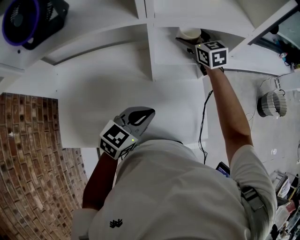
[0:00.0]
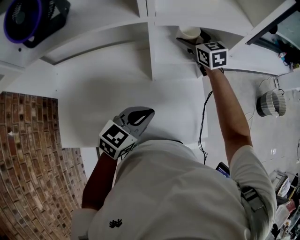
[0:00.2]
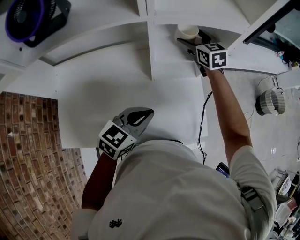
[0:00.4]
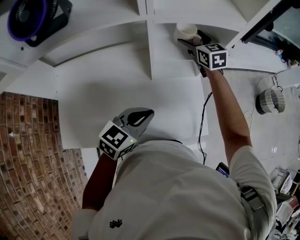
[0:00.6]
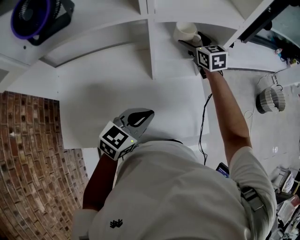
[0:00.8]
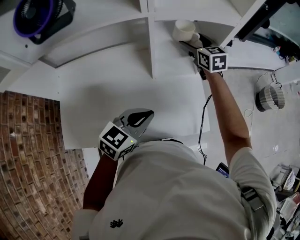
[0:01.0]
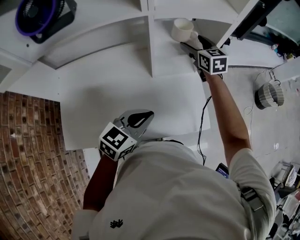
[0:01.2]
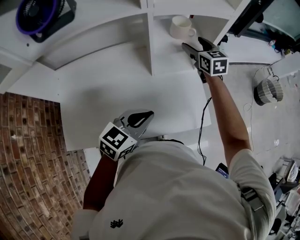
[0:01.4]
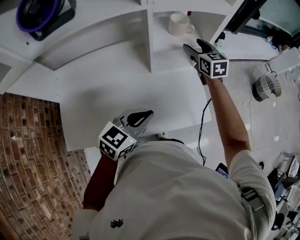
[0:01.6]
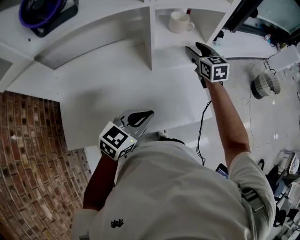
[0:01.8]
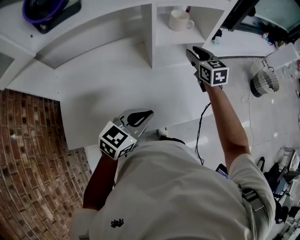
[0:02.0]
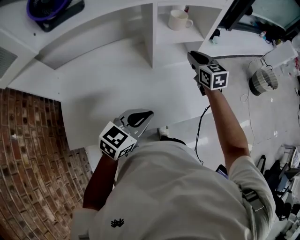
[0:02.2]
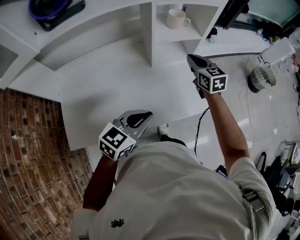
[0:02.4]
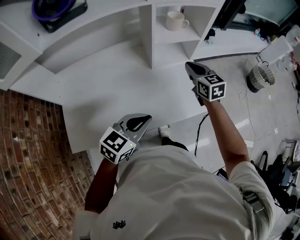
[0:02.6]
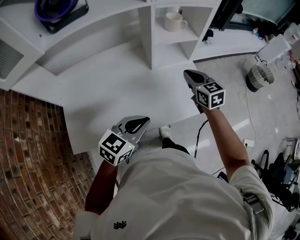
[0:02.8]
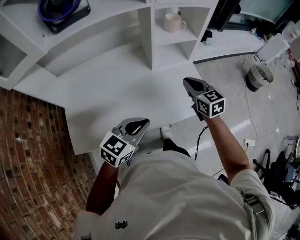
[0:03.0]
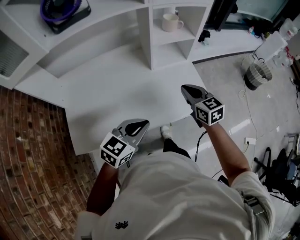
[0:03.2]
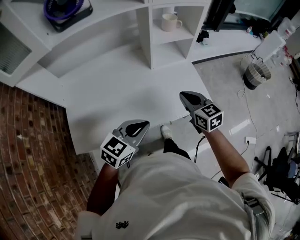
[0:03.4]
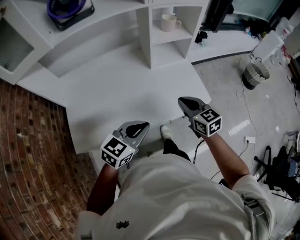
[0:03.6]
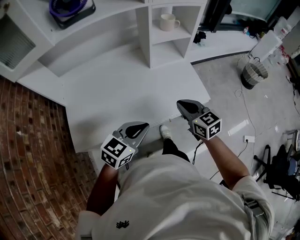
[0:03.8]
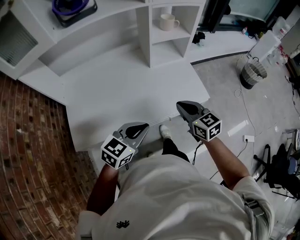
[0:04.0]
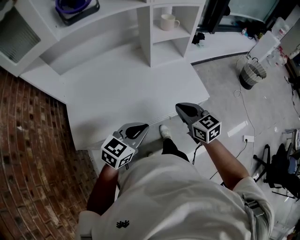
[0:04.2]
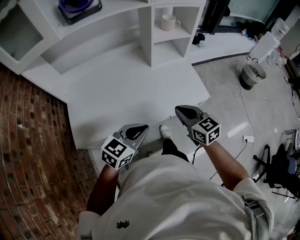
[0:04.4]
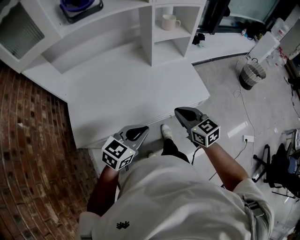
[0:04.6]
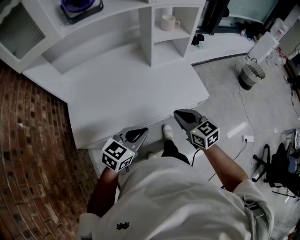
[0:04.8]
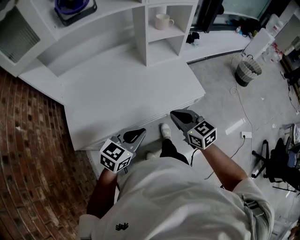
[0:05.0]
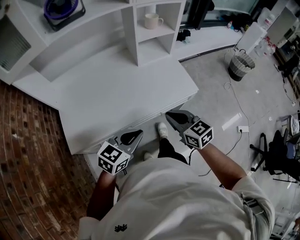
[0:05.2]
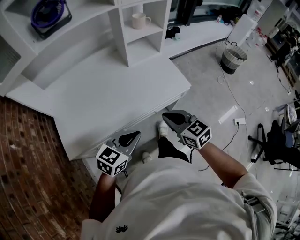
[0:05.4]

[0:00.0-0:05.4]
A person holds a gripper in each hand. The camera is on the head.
0:00.0 to 0:01.4: The right gripper heads backward and to the right, covering about 10 cm. The left gripper shifts approximately 10 cm backward.
0:01.4 to 0:02.8: The left gripper goes about 10 cm backward. Meanwhile the right gripper travels backward by some 25 cm, and closes its fingers.
0:02.8 to 0:04.0: The right gripper travels backward by some 20 cm, while the left gripper is displaced backward by roughly 10 cm.
0:04.0 to 0:05.4: The right gripper moves backward, about 10 cm, while the left gripper heads backward, covering some 5 cm.

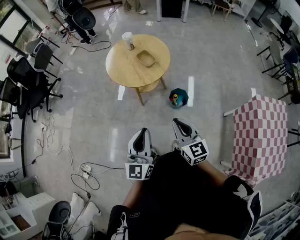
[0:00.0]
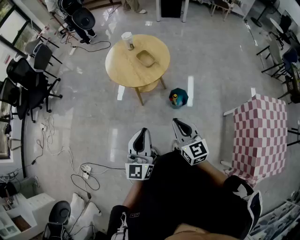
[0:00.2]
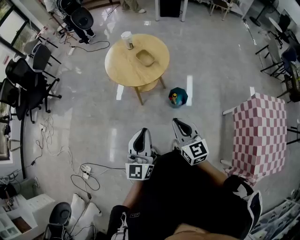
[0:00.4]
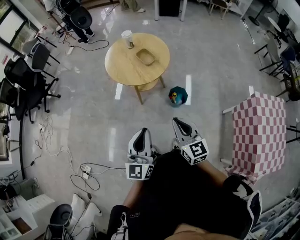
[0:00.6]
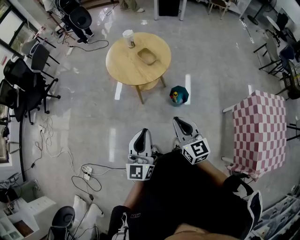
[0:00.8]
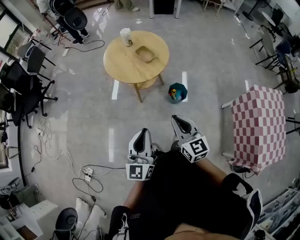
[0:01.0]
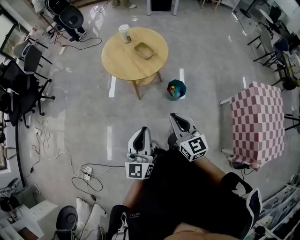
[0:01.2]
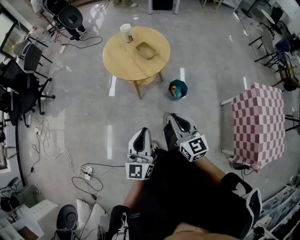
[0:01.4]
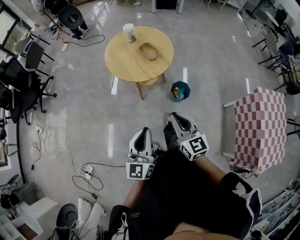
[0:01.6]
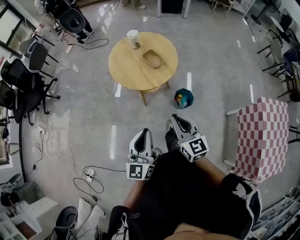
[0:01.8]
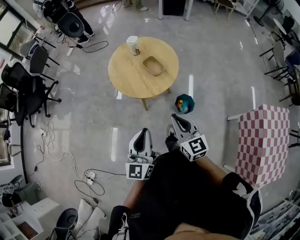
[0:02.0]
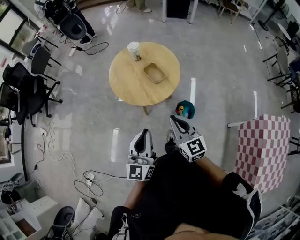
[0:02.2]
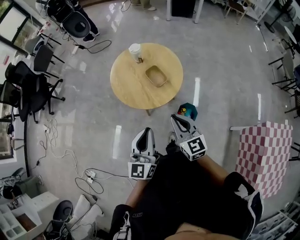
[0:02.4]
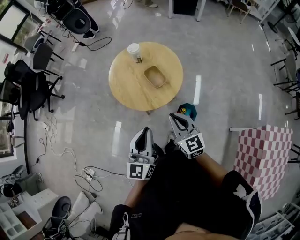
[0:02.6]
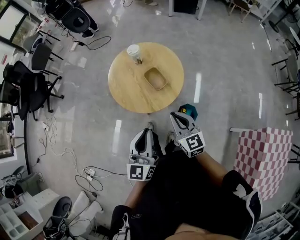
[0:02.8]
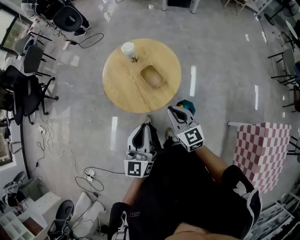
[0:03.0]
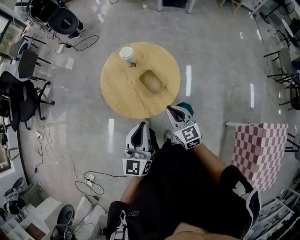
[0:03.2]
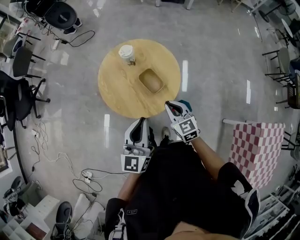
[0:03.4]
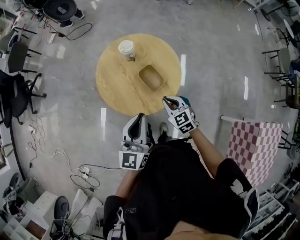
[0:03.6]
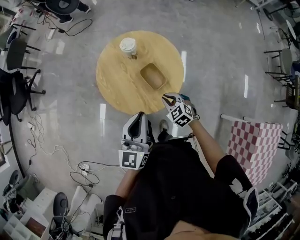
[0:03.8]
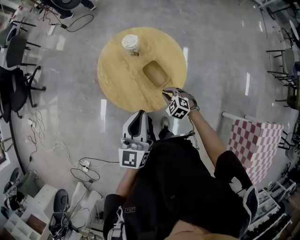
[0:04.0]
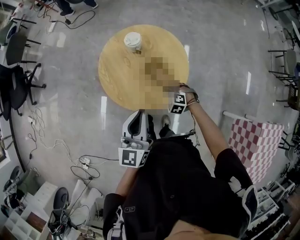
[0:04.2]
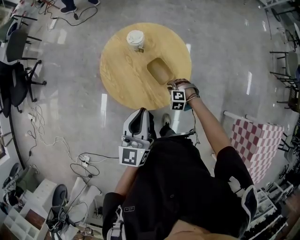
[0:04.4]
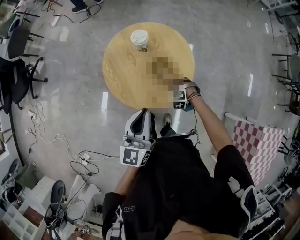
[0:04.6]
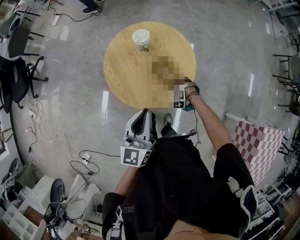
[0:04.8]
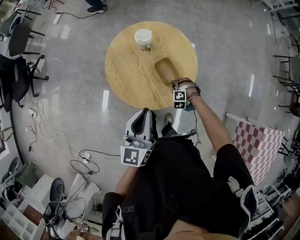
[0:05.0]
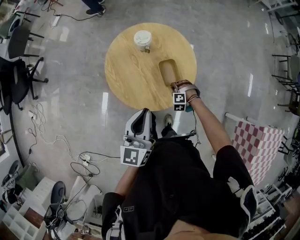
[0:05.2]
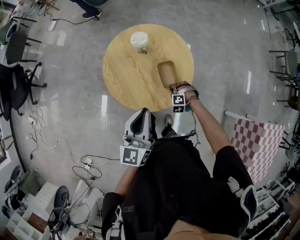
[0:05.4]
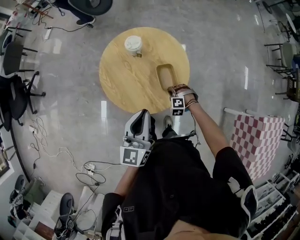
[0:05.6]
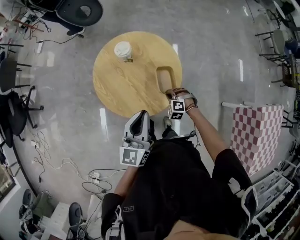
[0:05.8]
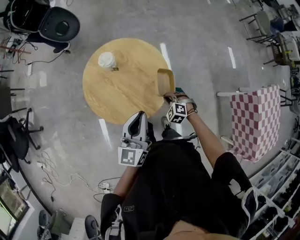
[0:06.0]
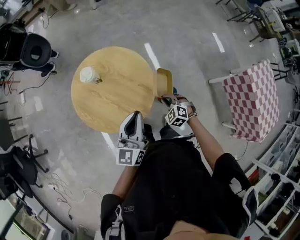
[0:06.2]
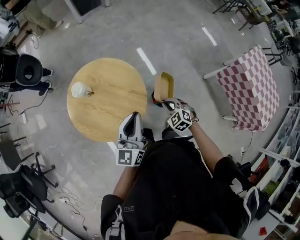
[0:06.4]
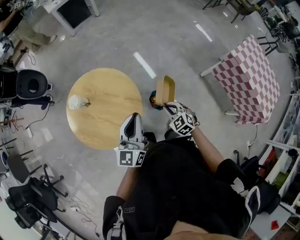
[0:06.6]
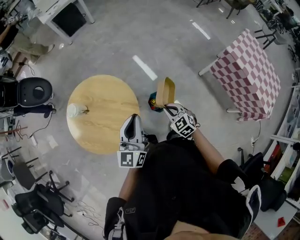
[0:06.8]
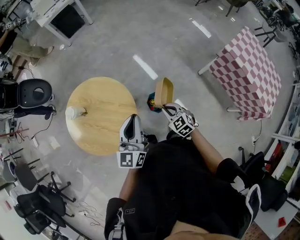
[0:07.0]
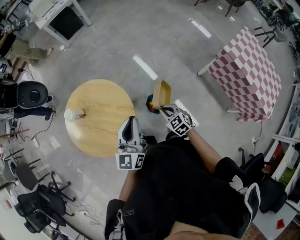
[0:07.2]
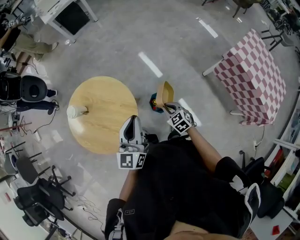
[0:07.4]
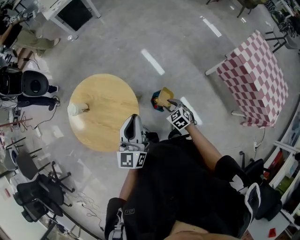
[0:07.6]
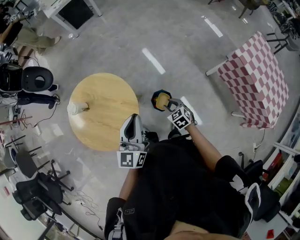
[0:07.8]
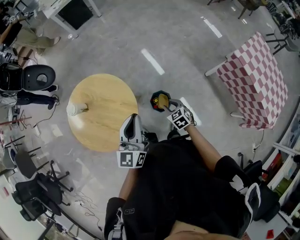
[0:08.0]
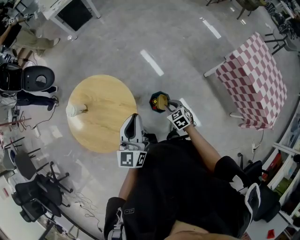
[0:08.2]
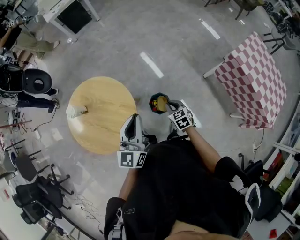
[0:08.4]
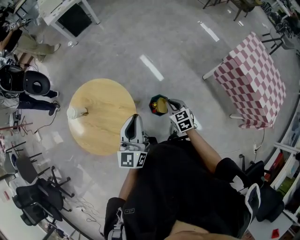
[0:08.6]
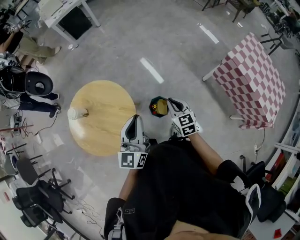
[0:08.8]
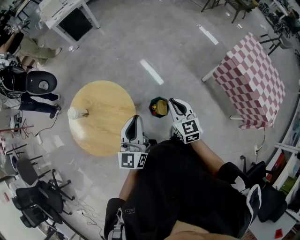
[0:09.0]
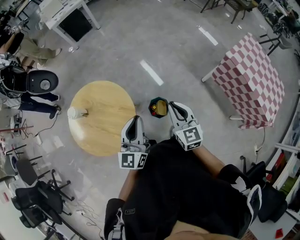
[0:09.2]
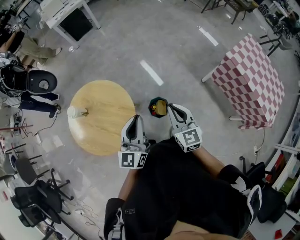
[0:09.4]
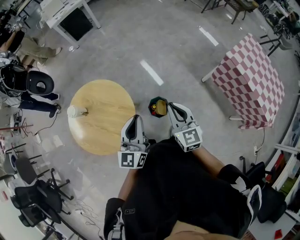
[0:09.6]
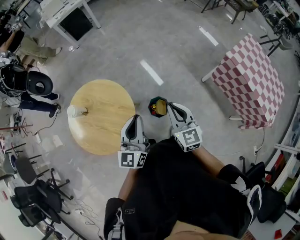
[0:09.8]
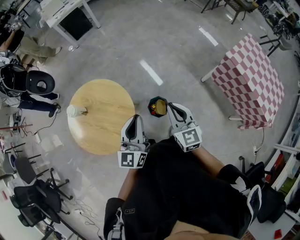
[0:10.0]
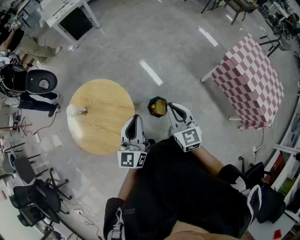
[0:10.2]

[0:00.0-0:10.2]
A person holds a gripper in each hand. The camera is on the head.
0:00.0 to 0:01.4: The two grippers go approximately 10 cm to the left.
0:01.4 to 0:03.0: The two grippers go approximately 35 cm forward.
0:03.0 to 0:04.4: The right gripper is displaced downward and forward by approximately 35 cm, and tilts its fingers about 60 degrees downward; the left gripper moves forward, about 15 cm.
0:04.4 to 0:05.8: There are only small adjustments of the grippers.
0:05.8 to 0:07.2: The right gripper shifts by roughly 30 cm, and rolls clockwise, seen from behind, by about 70 degrees. The left gripper ends up some 25 cm from where it was, and changes its angle by approximately 30 degrees.
0:07.2 to 0:08.8: The right gripper moves upward and to the right, approximately 10 cm, changes its angle by about 20 degrees, and opens, then closes once more.
0:08.8 to 0:10.2: The right gripper heads upward, covering approximately 10 cm.

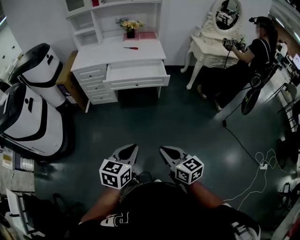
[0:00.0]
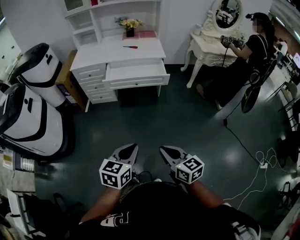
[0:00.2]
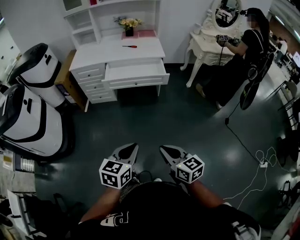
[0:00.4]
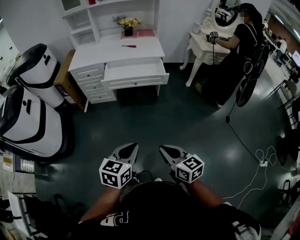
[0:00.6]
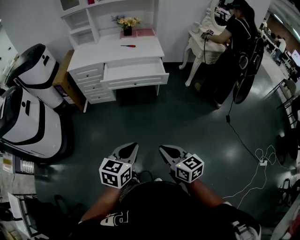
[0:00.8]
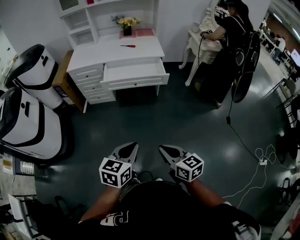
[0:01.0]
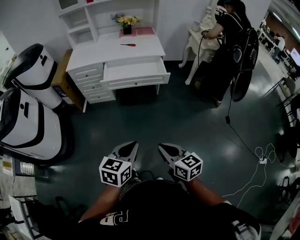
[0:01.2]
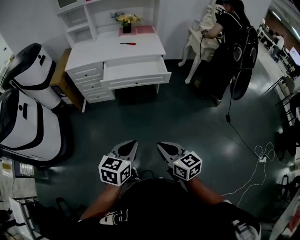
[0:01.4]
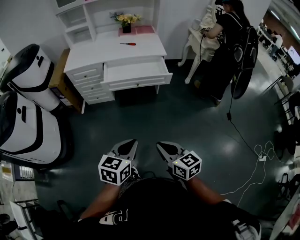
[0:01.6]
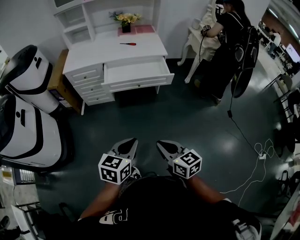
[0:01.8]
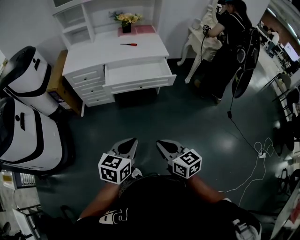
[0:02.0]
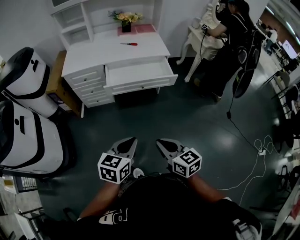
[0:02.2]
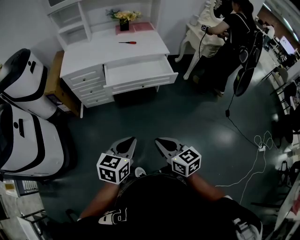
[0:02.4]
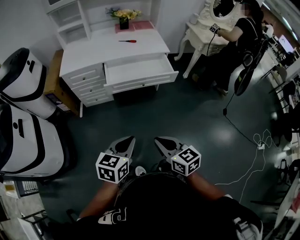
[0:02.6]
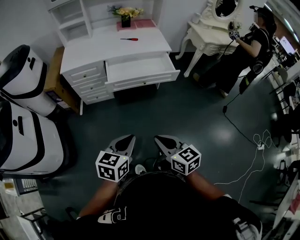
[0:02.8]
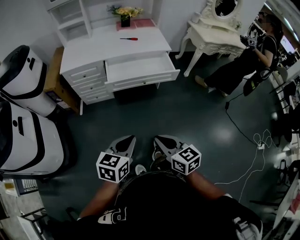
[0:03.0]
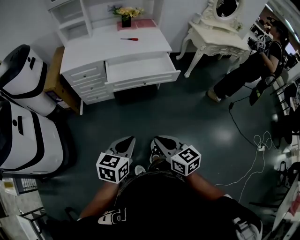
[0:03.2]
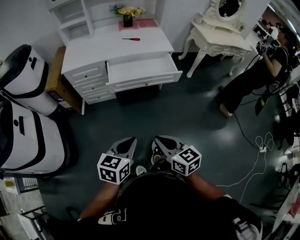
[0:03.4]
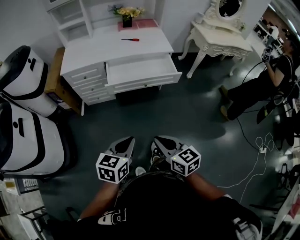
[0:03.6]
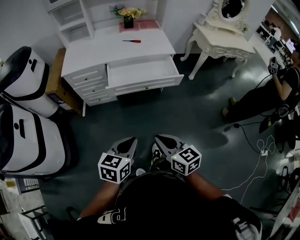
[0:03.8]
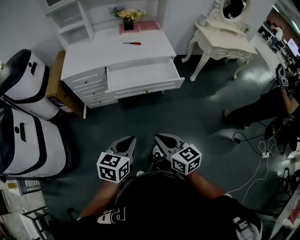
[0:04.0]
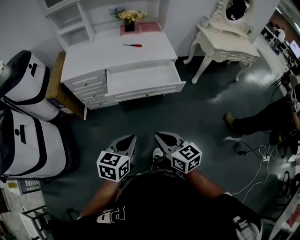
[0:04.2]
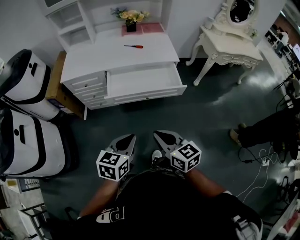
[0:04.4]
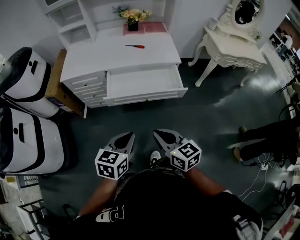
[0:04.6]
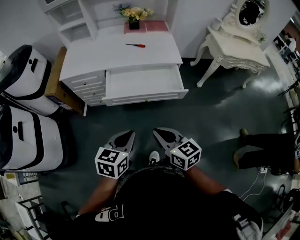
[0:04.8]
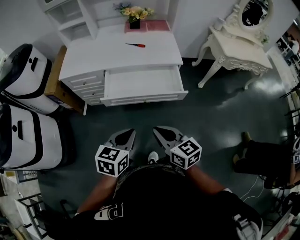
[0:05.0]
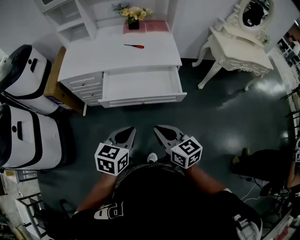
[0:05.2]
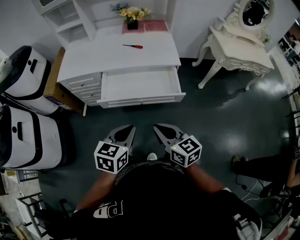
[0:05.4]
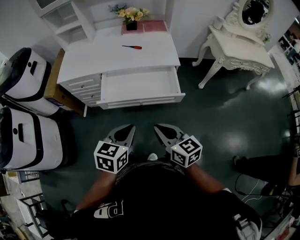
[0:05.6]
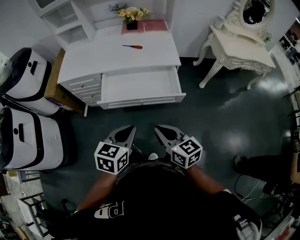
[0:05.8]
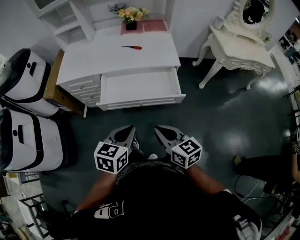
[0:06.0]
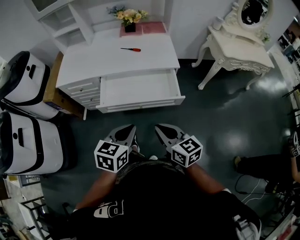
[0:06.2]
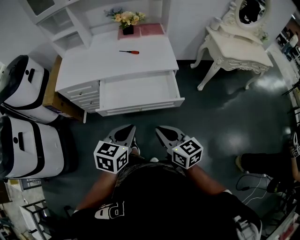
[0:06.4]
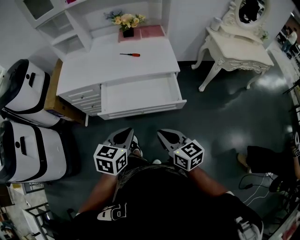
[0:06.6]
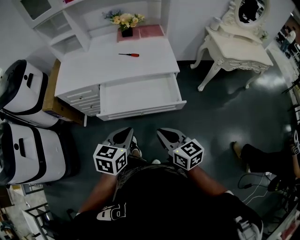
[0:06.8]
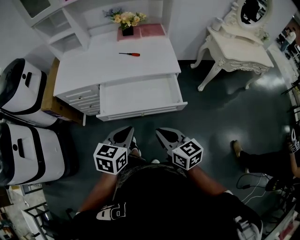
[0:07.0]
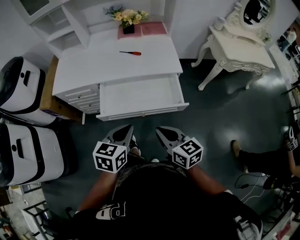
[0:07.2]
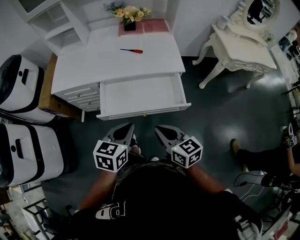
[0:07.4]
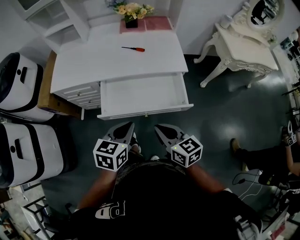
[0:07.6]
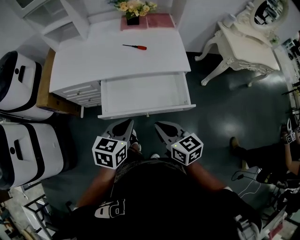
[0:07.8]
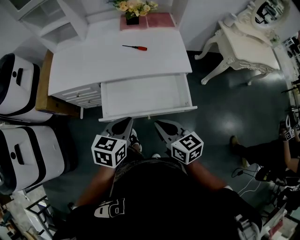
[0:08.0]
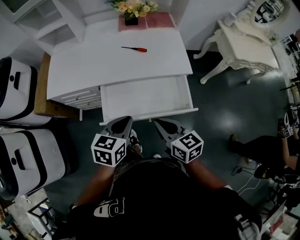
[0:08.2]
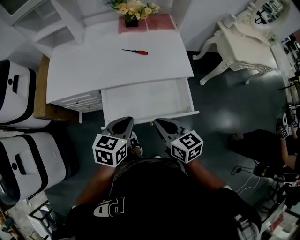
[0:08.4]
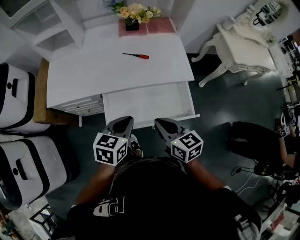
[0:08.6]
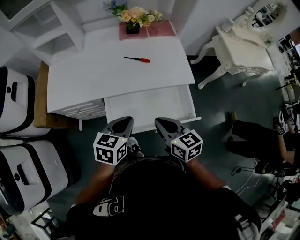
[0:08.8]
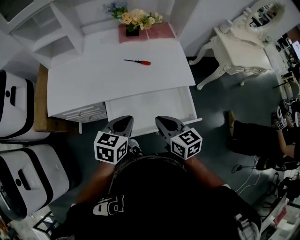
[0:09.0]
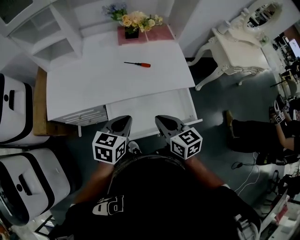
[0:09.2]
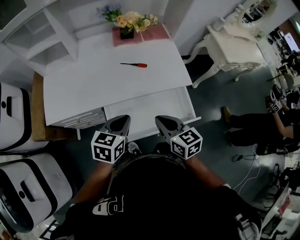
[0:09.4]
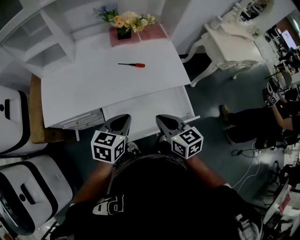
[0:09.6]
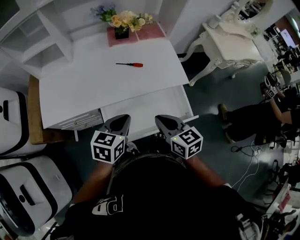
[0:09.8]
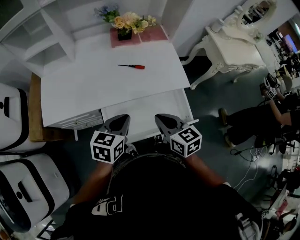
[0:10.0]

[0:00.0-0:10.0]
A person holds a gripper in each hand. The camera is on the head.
0:00.0 to 0:01.4: The grippers both shift forward by about 5 cm.
0:01.4 to 0:02.8: The grippers both shift to the left and forward by about 20 cm.
0:02.8 to 0:04.2: The two grippers go roughly 10 cm forward.
0:04.2 to 0:05.8: The two grippers go some 20 cm forward and to the right.
0:05.8 to 0:07.2: Both grippers move forward, about 10 cm.
0:07.2 to 0:08.6: The right gripper shifts some 20 cm forward and to the left; the left gripper travels forward by some 15 cm.
0:08.6 to 0:10.0: Both grippers travel together forward, some 5 cm.
